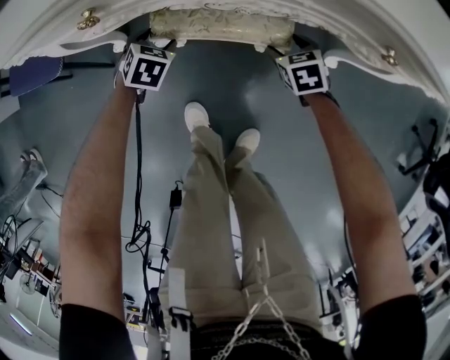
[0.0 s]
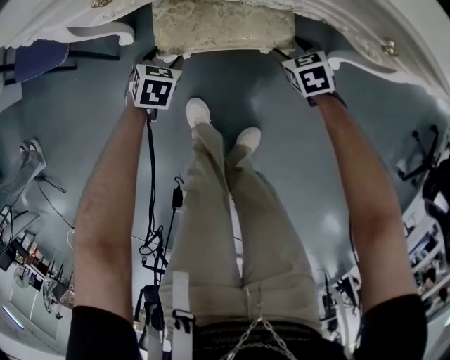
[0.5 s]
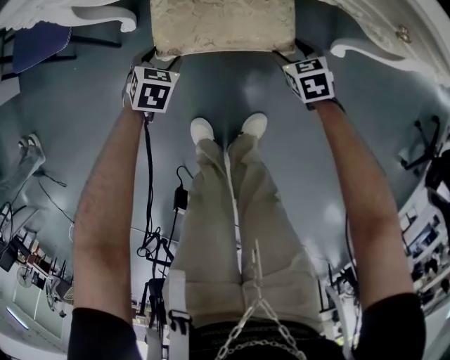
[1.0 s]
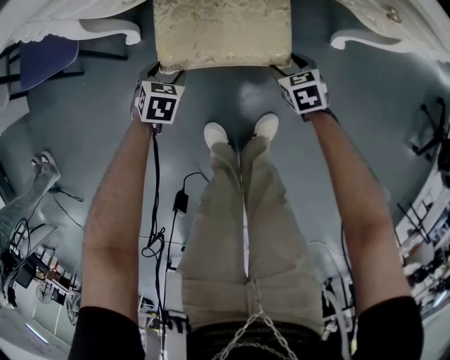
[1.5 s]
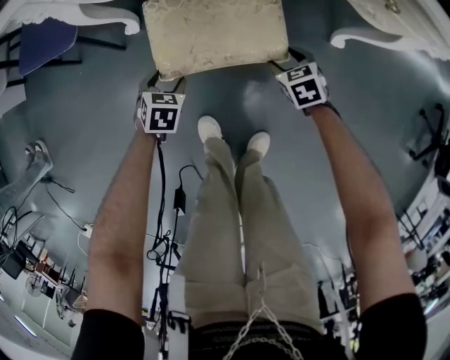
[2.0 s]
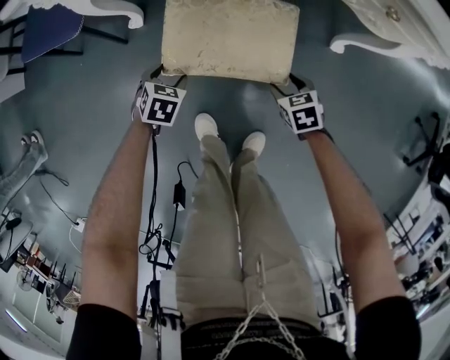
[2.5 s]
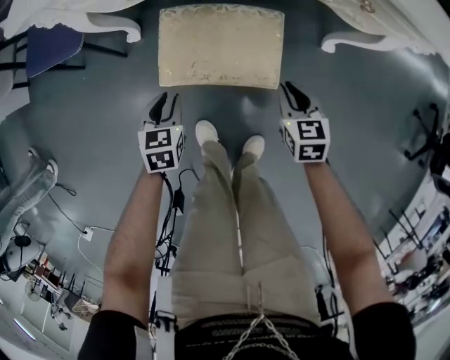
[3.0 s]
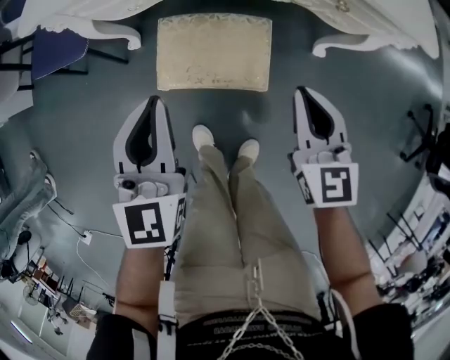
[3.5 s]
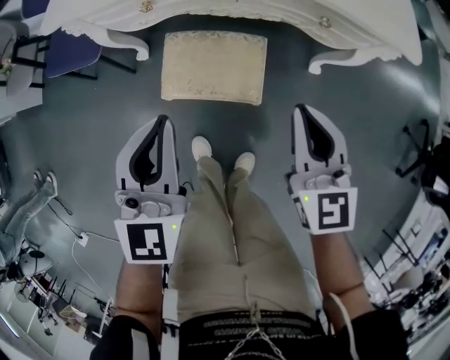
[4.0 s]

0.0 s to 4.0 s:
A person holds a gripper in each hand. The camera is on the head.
0.0 to 2.0 s: The grippers both shift backward by roughly 15 cm.
2.0 to 4.0 s: The two grippers go about 40 cm upward. The left gripper angles its fingers upward, by some 50 degrees, and closes, while the right gripper tilts its fingers approximately 50 degrees upward, and closes its fingers.

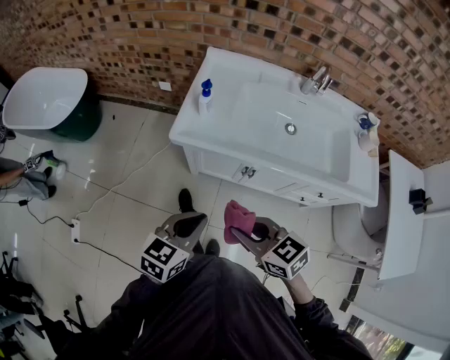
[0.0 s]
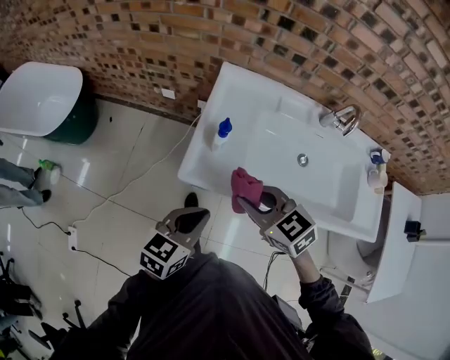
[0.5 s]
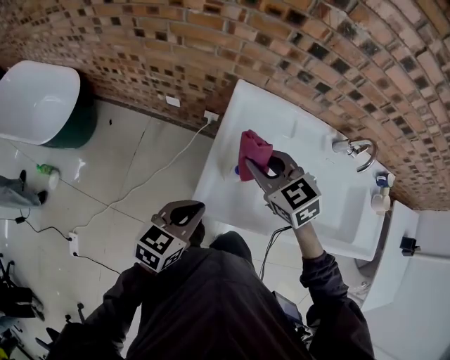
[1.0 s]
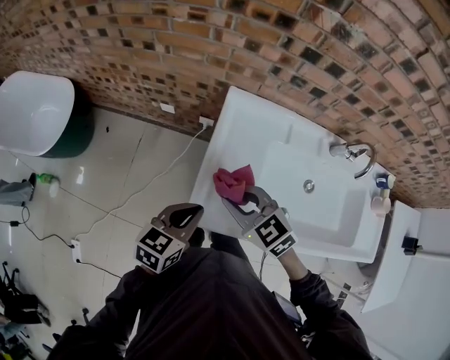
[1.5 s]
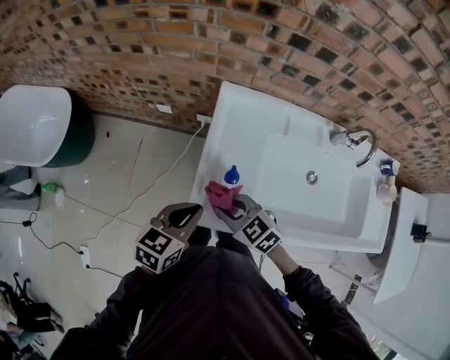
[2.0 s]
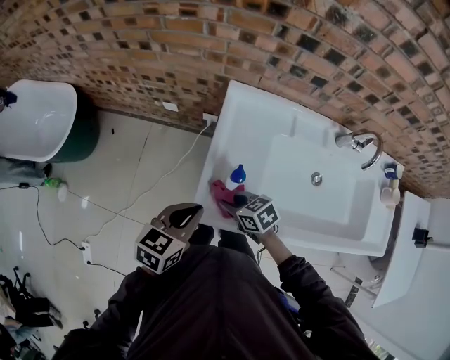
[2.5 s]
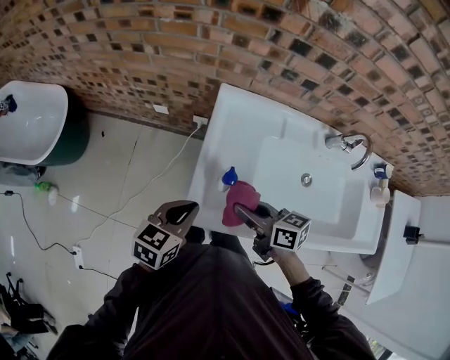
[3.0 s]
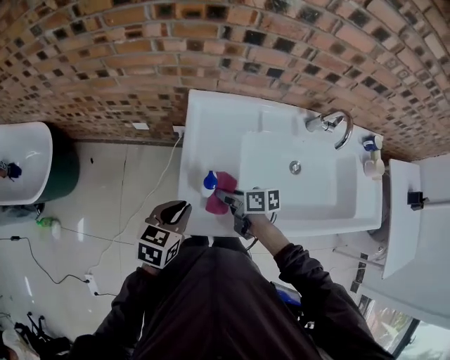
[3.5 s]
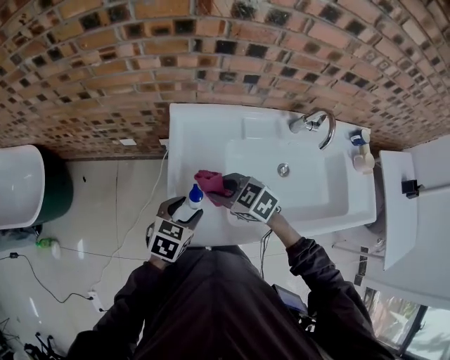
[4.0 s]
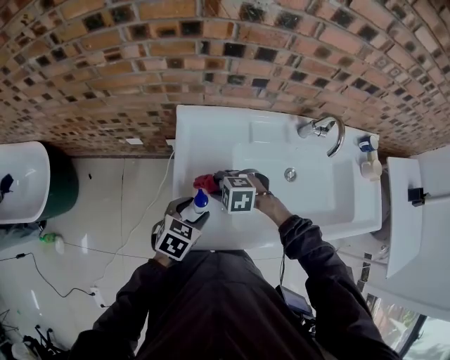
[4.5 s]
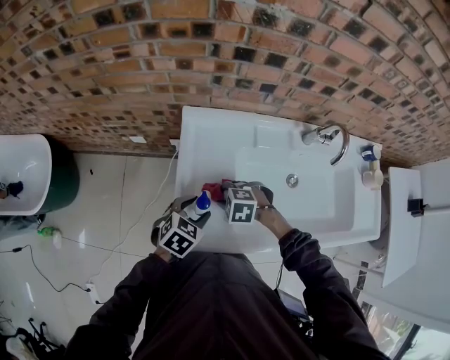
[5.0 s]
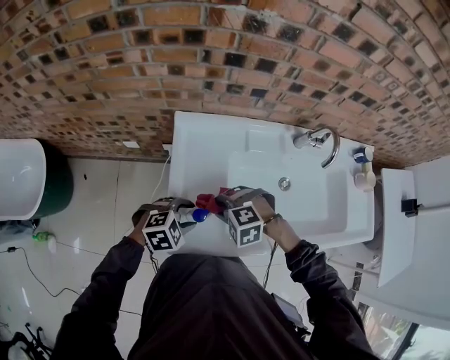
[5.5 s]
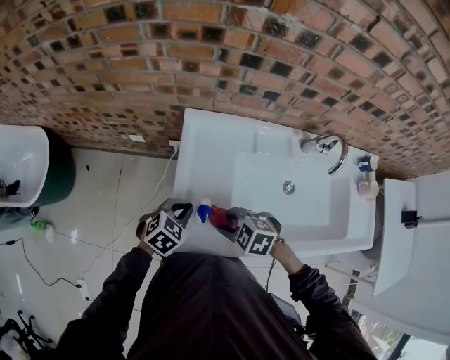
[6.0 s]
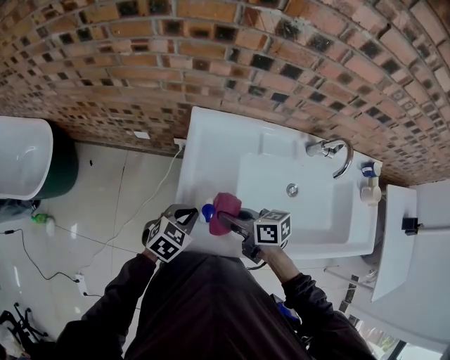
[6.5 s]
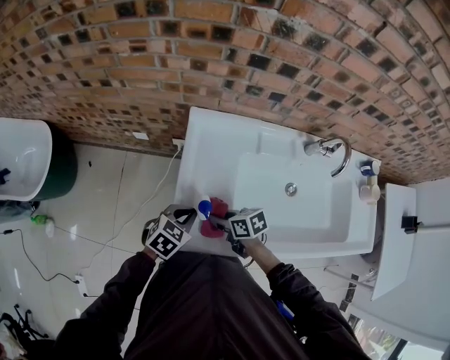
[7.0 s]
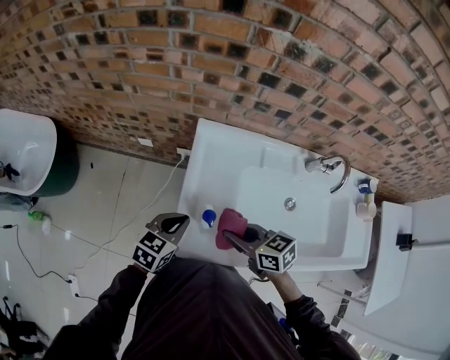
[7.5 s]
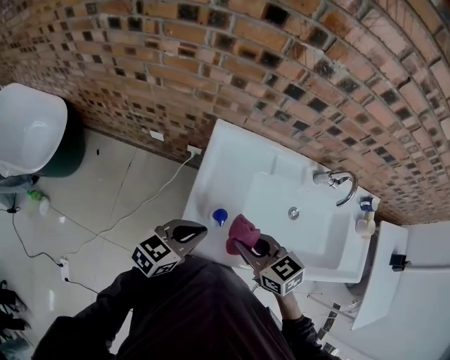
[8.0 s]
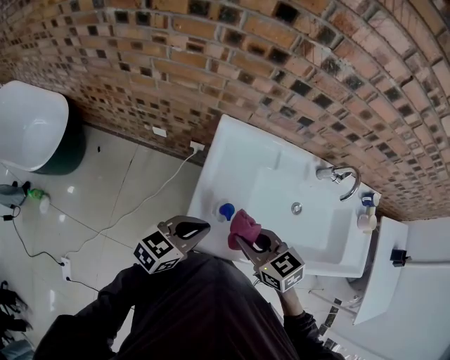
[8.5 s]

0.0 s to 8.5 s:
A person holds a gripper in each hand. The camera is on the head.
0.0 to 2.0 s: Both grippers move forward, roughly 35 cm.
2.0 to 4.0 s: The right gripper goes up and down, some 10 cm each way, reversing 3 times. The left gripper shifts roughly 10 cm to the right, downward and forward, and opens.
4.0 to 6.5 s: The right gripper moves approximately 10 cm downward and comes back, and rotates around the line of its fingers by some 40 degrees, clockwise from behind. The left gripper closes up.
6.5 to 8.5 s: The two grippers go roughly 10 cm upward. The right gripper turns by roughly 40 degrees. The left gripper turns by roughly 30 degrees.

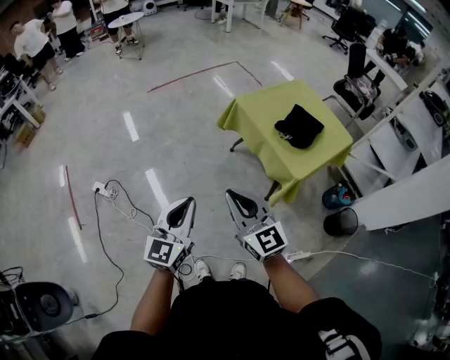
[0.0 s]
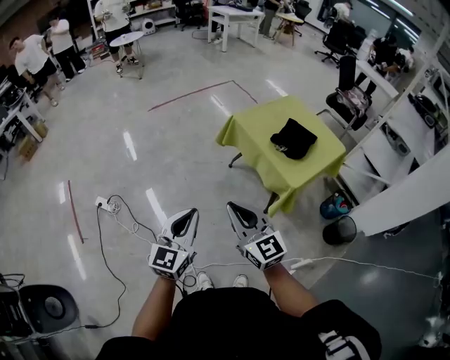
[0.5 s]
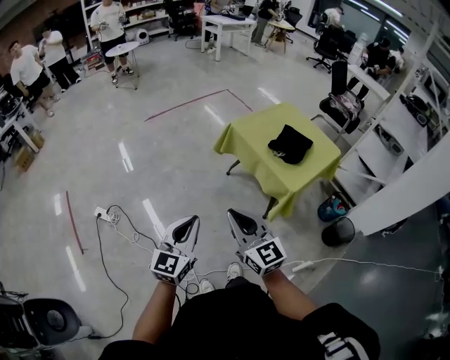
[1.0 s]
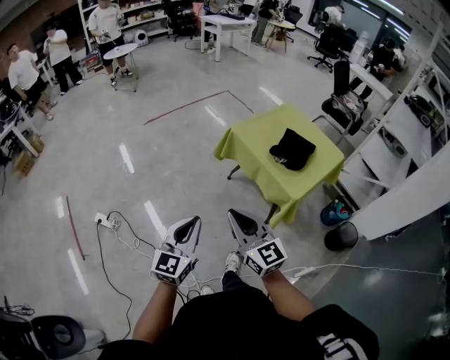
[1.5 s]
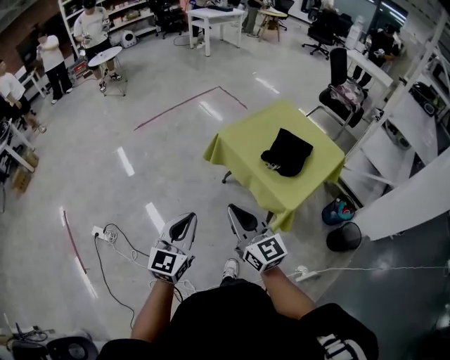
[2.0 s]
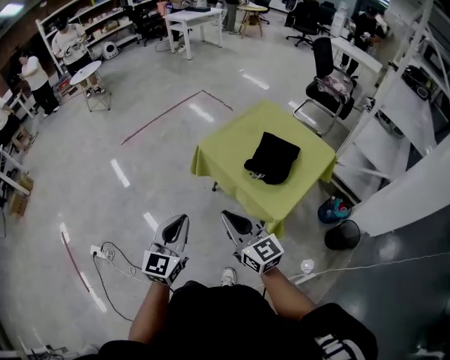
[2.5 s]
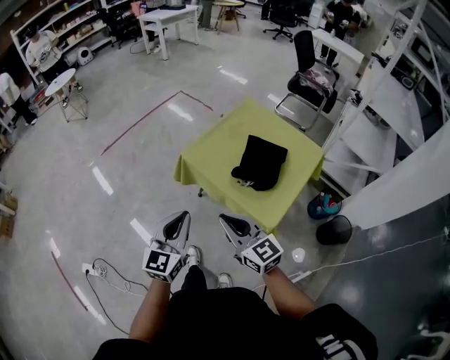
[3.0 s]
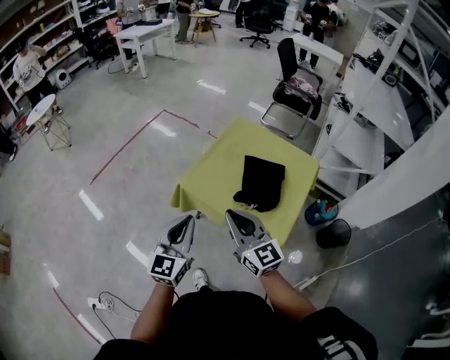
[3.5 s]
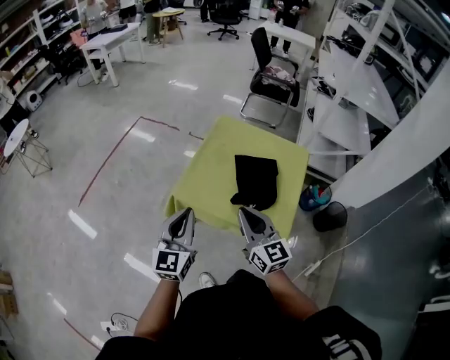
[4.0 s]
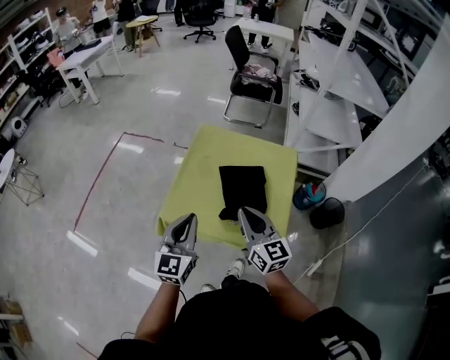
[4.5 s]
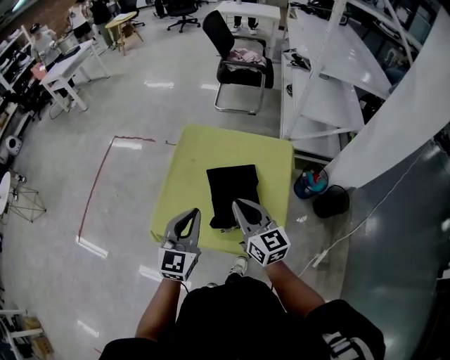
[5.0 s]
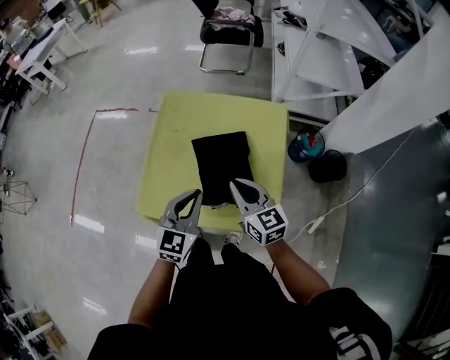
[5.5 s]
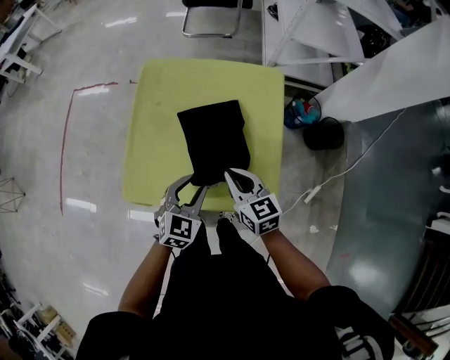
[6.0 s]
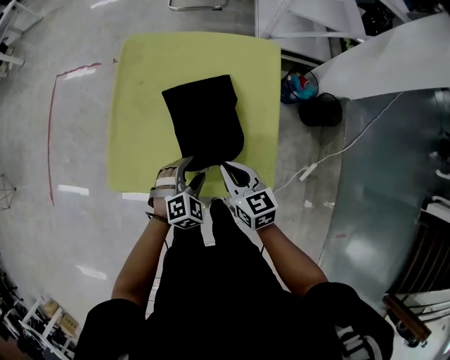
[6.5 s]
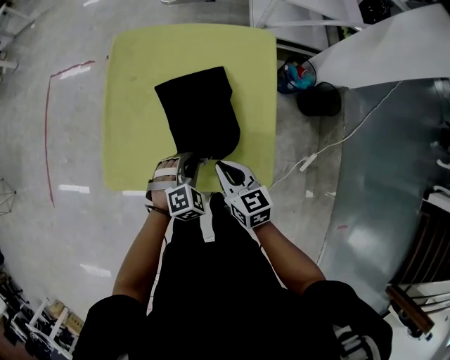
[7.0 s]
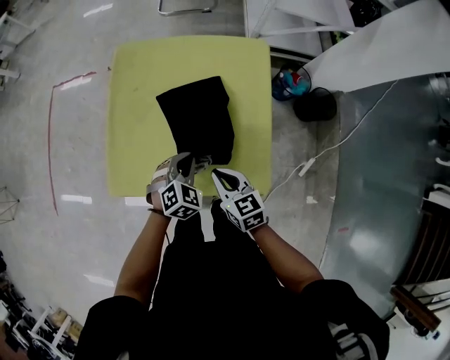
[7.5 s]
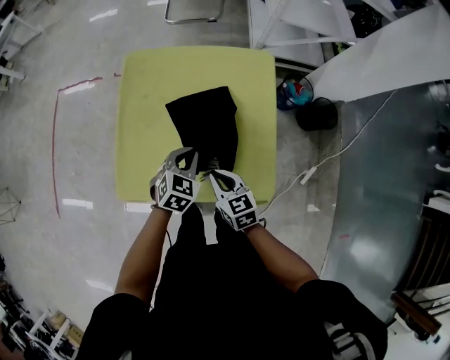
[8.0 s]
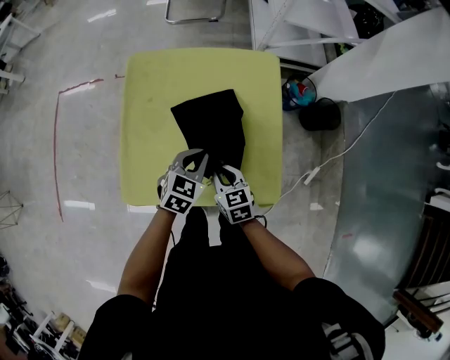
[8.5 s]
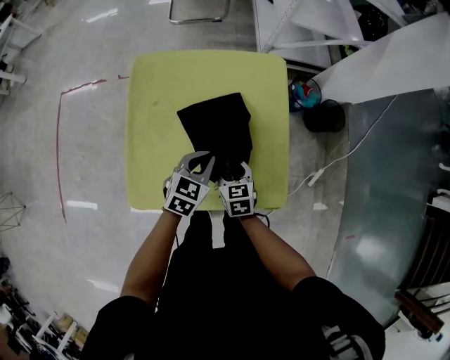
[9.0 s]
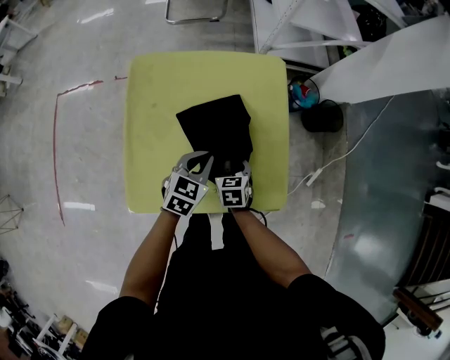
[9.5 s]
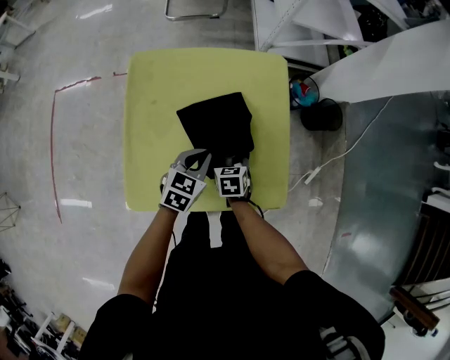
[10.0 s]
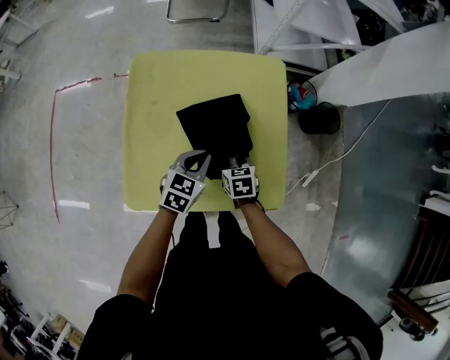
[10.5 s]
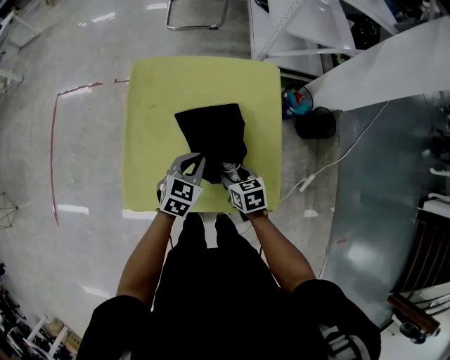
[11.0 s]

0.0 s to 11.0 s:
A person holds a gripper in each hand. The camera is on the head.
0.0 to 2.0 s: Both grippers move forward and to the right, approximately 15 cm.
2.0 to 3.5 s: The grippers both shift forward by about 25 cm.
3.5 to 5.5 s: The left gripper changes place by some 30 cm, and turns by roughly 30 degrees; the right gripper moves about 30 cm, and rotates about 30 degrees.
5.5 to 7.5 s: The right gripper shifts some 15 cm downward and backward. The left gripper shifts about 20 cm downward, tilts its fingers some 30 degrees downward, and opens and closes again.
7.5 to 9.0 s: The left gripper is displaced forward by roughly 5 cm, and changes its angle by about 30 degrees; the right gripper is displaced forward and downward by approximately 10 cm, and opens its fingers.
9.0 to 11.0 s: The grippers move only a little.

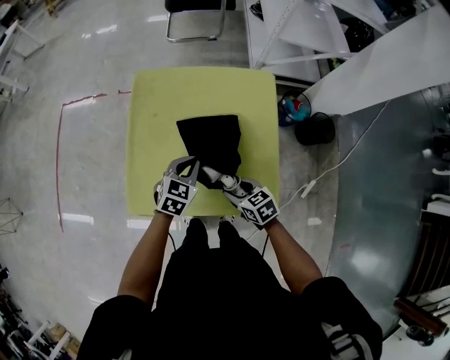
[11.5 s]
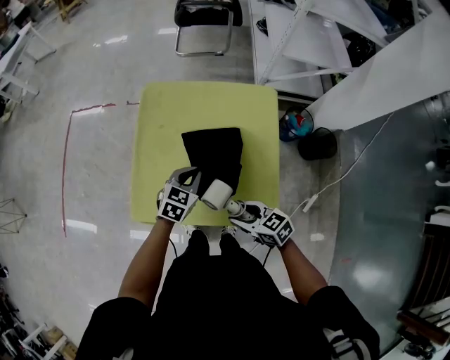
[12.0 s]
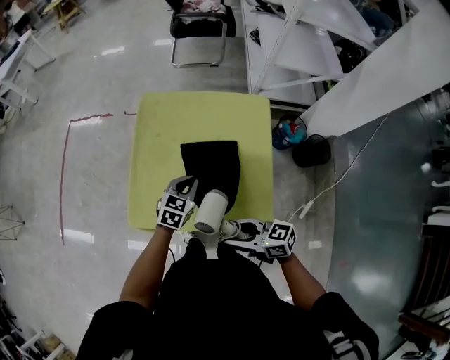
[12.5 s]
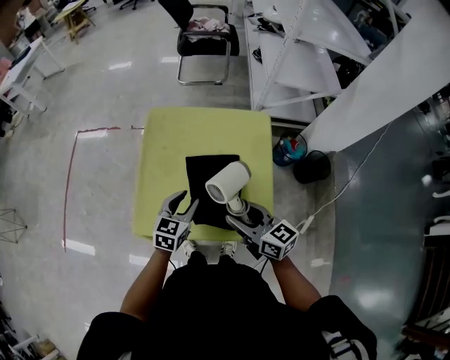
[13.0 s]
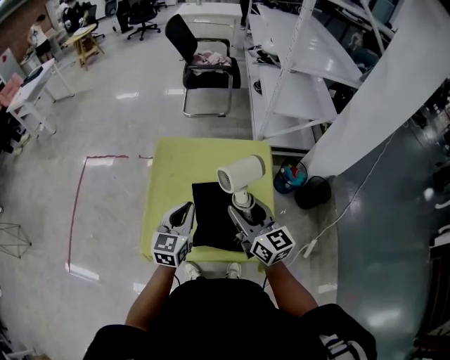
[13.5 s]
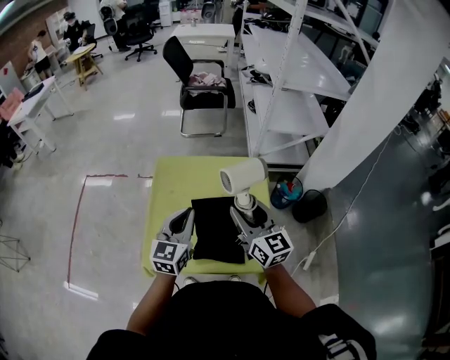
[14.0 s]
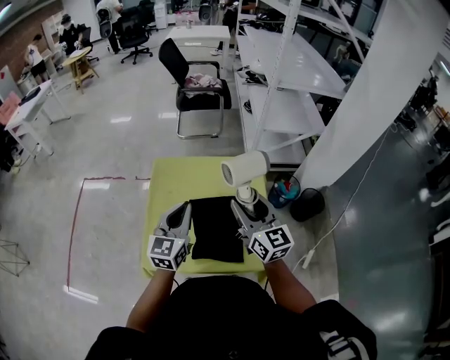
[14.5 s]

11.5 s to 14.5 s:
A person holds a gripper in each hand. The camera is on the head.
11.5 to 13.0 s: The left gripper moves upward, roughly 5 cm, and opens its fingers; the right gripper goes about 20 cm upward, and points its fingers roughly 30 degrees further upward.
13.0 to 14.5 s: The right gripper shifts about 15 cm upward and forward, and swivels about 30 degrees, while the left gripper travels upward by some 15 cm, turns by roughly 20 degrees, and closes up.
